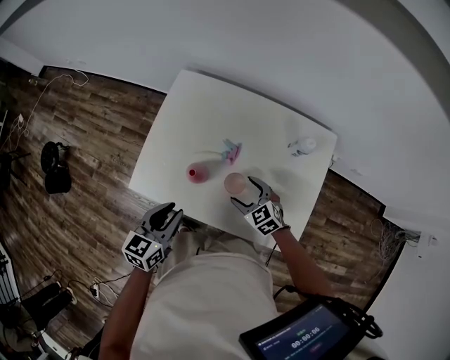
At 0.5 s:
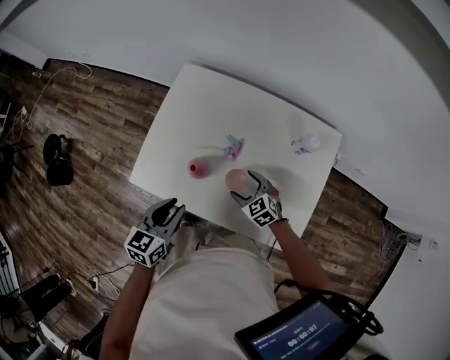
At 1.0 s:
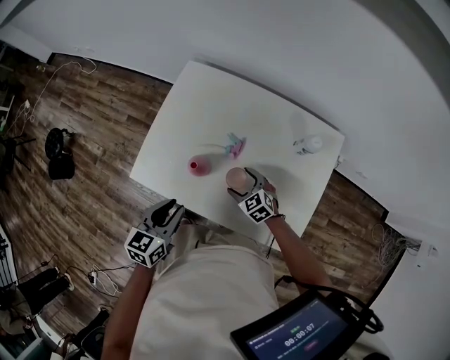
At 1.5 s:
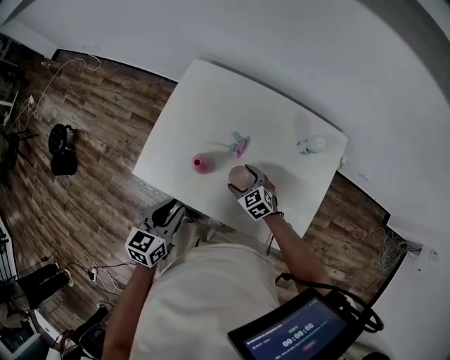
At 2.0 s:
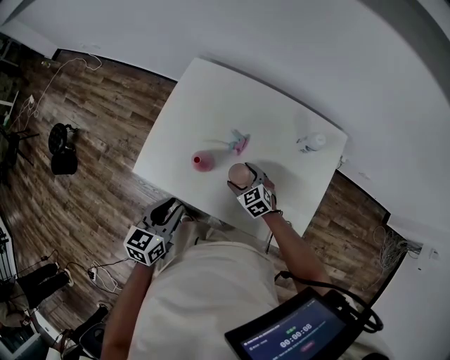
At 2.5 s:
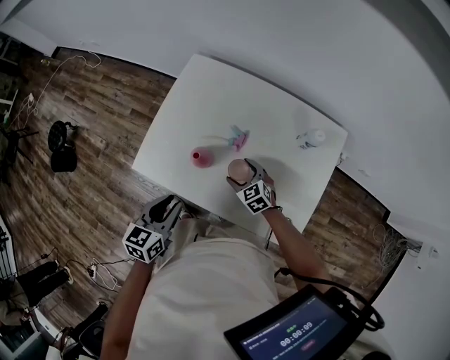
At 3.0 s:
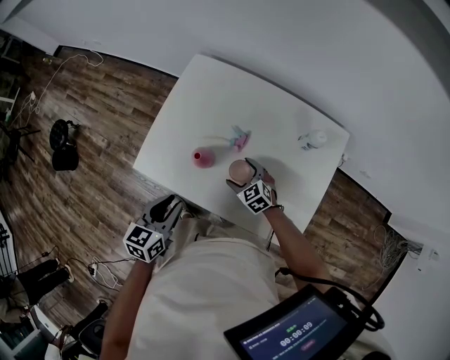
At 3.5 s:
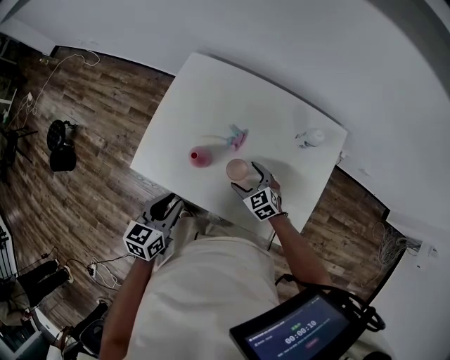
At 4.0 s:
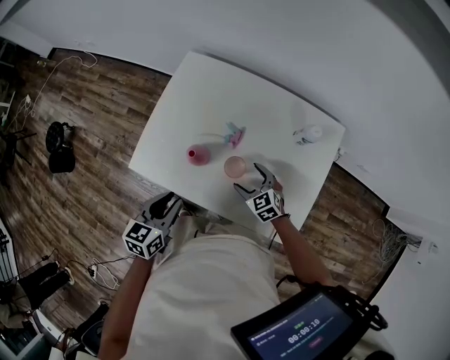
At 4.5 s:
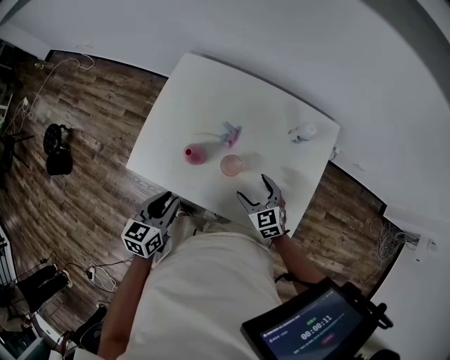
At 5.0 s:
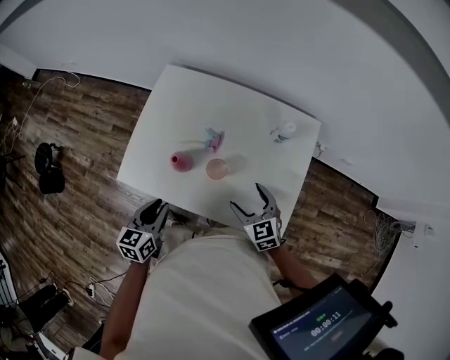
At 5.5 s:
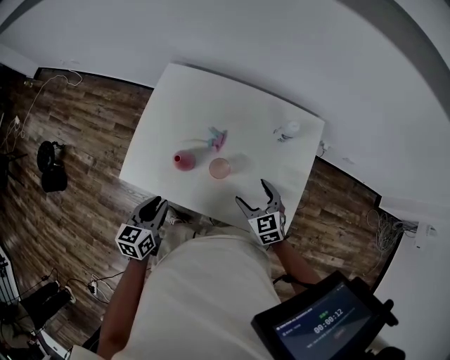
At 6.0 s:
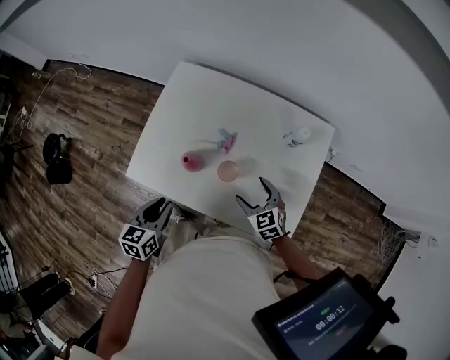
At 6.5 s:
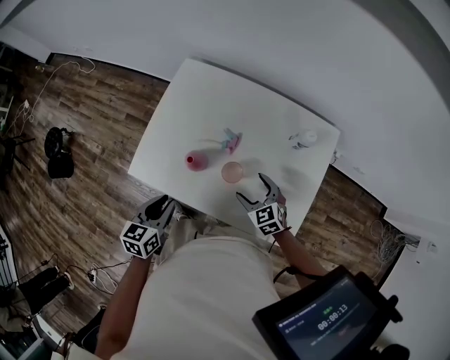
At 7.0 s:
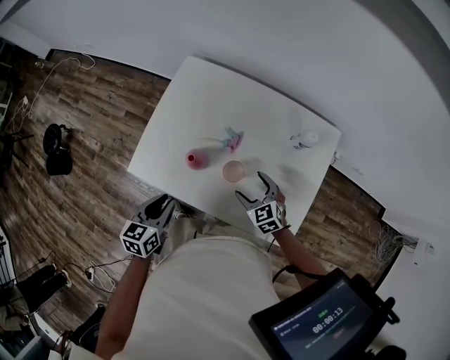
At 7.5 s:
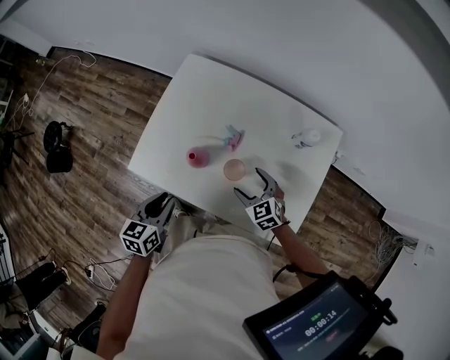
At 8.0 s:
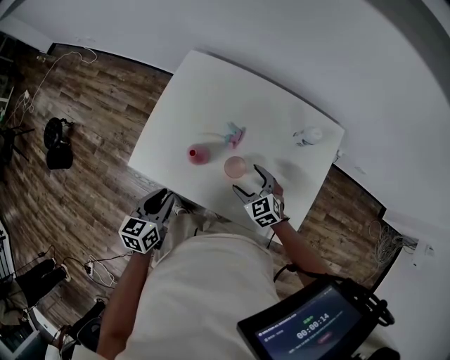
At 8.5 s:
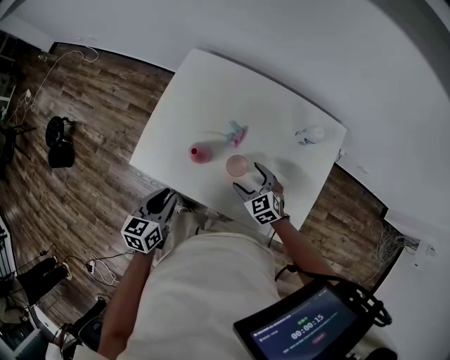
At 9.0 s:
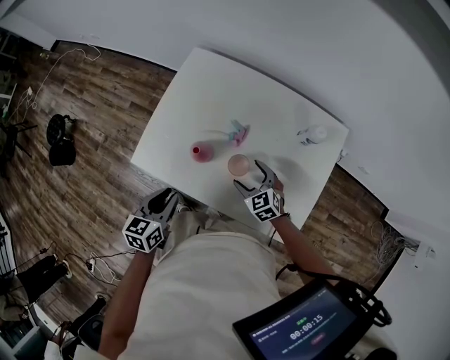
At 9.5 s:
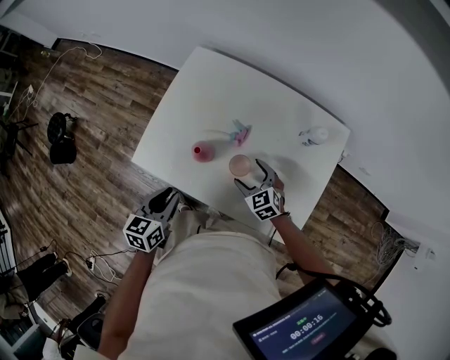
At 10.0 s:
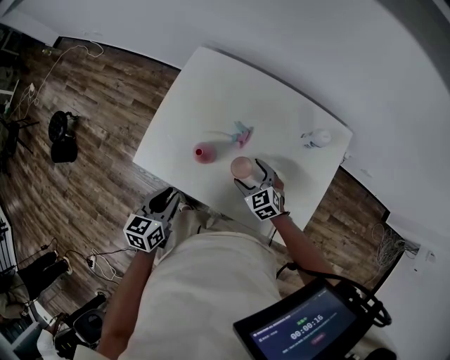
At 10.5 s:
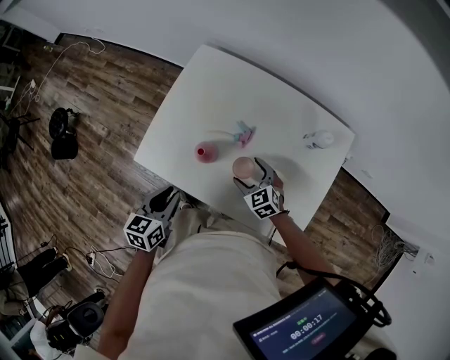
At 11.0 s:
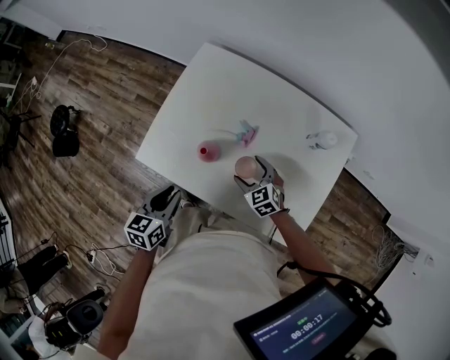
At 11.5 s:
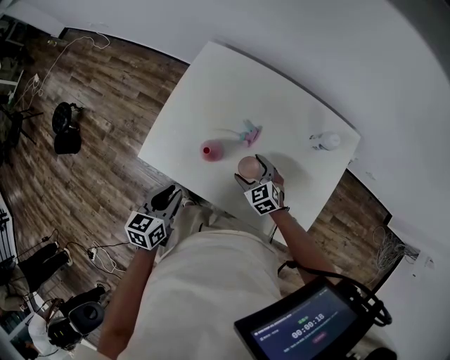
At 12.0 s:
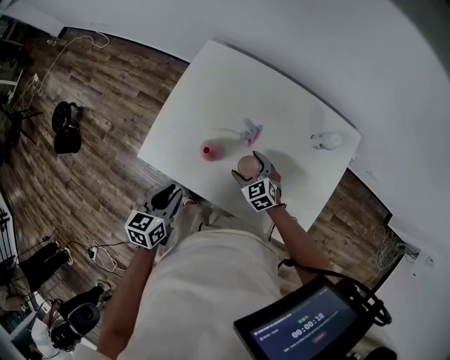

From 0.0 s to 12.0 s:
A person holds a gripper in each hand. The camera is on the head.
From 0.0 s to 2.0 s: The right gripper goes roughly 5 cm downward.
From 2.0 s to 4.0 s: The right gripper changes place by some 5 cm.
From 4.0 s to 6.0 s: The right gripper heads upward, covering some 5 cm.
From 6.0 s to 8.0 s: The right gripper ends up approximately 5 cm from where it was.
From 8.0 s to 10.0 s: The grippers stay close to where they were, moving slightly.
From 10.0 s to 12.0 s: There are only small adjustments of the grippers.

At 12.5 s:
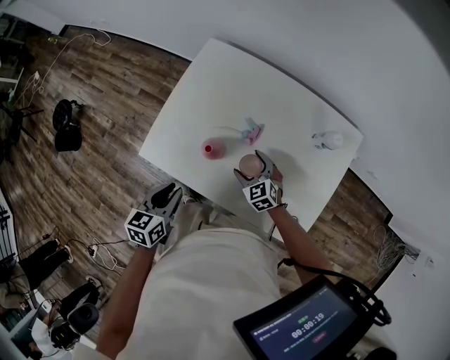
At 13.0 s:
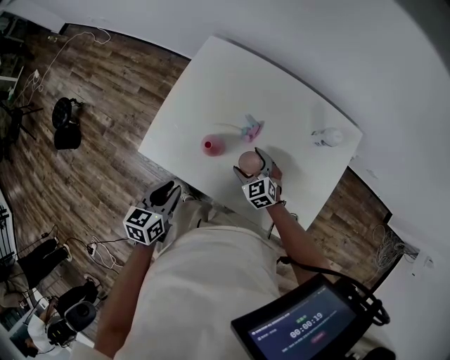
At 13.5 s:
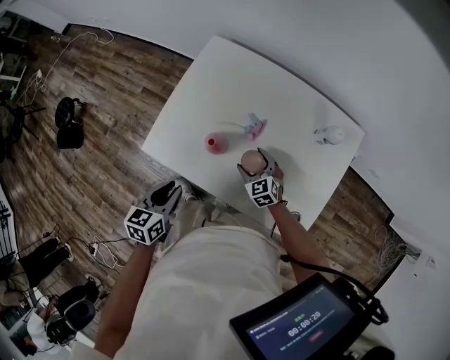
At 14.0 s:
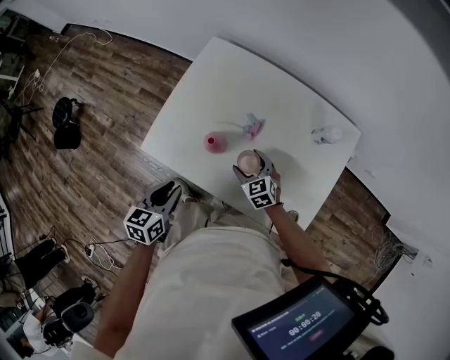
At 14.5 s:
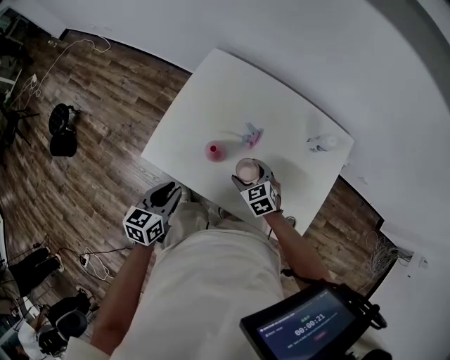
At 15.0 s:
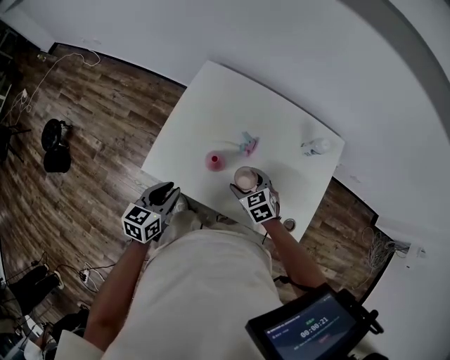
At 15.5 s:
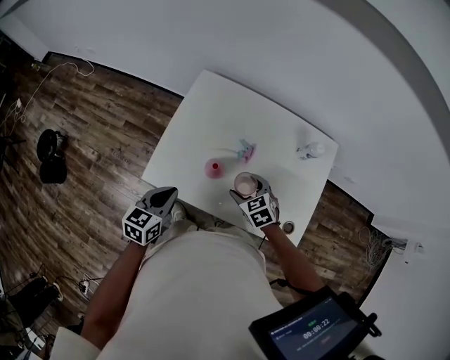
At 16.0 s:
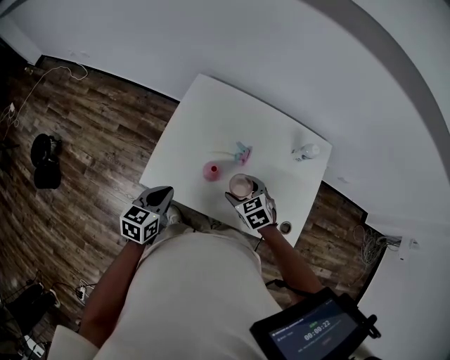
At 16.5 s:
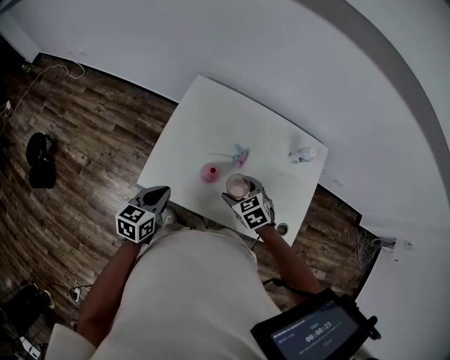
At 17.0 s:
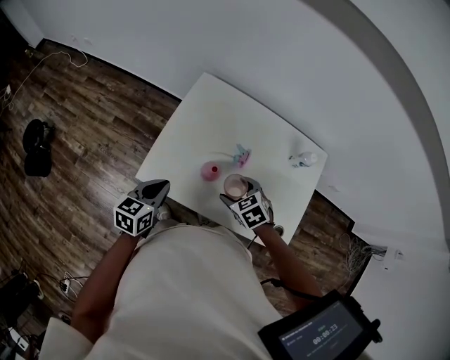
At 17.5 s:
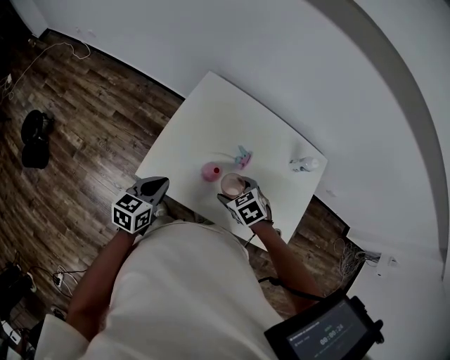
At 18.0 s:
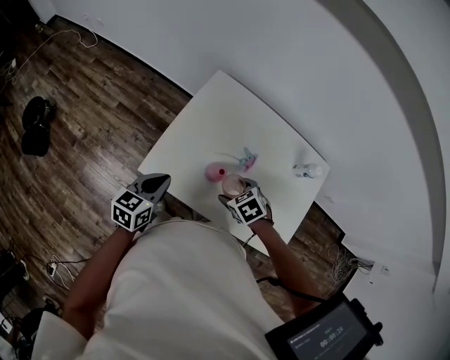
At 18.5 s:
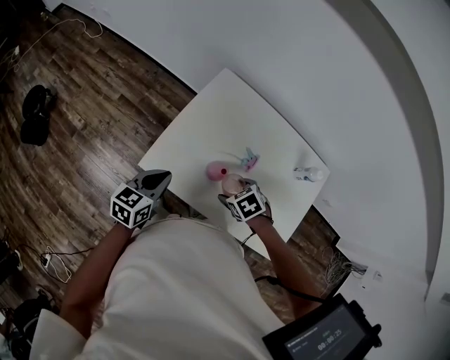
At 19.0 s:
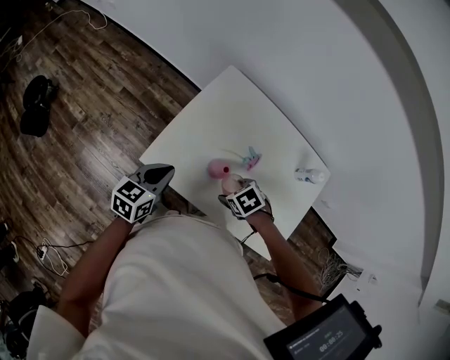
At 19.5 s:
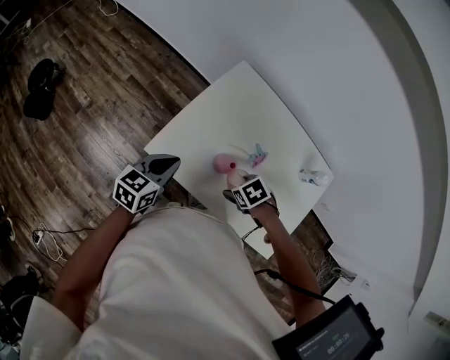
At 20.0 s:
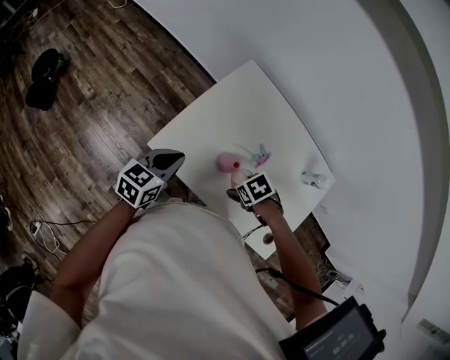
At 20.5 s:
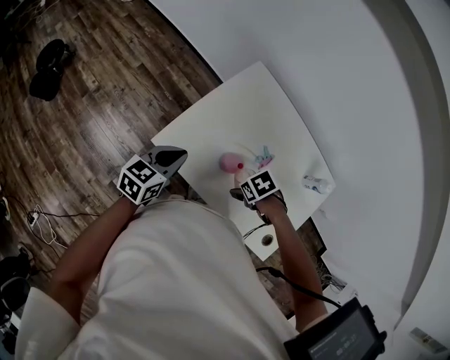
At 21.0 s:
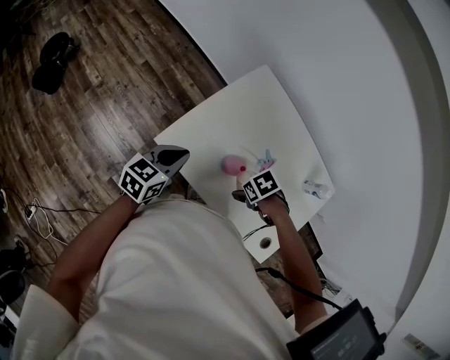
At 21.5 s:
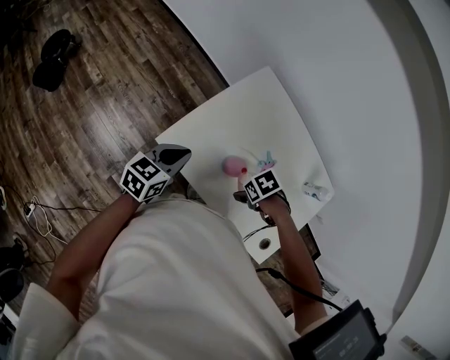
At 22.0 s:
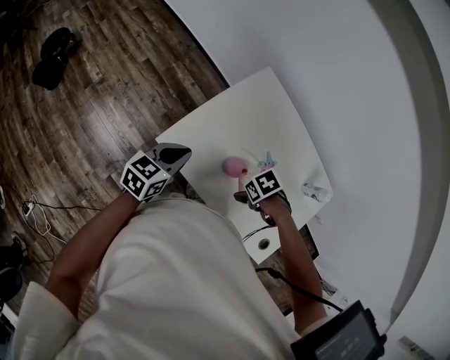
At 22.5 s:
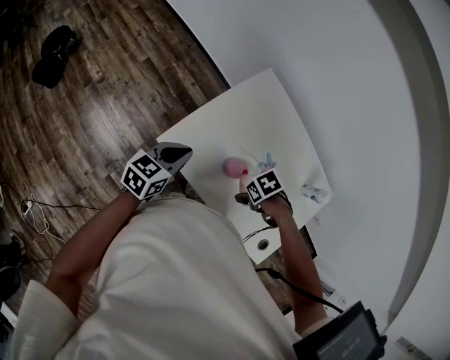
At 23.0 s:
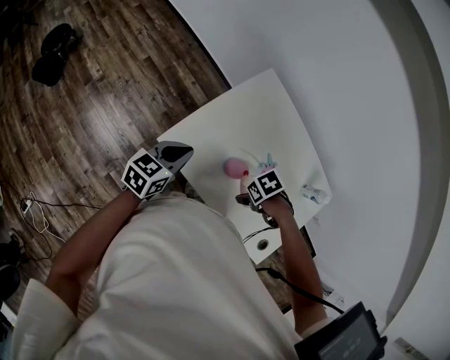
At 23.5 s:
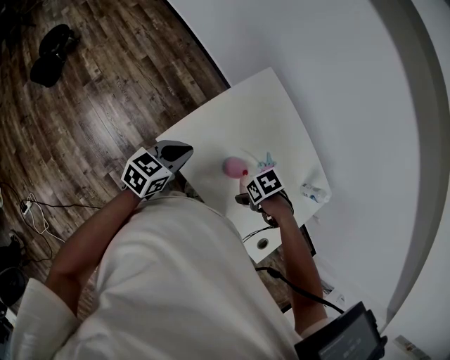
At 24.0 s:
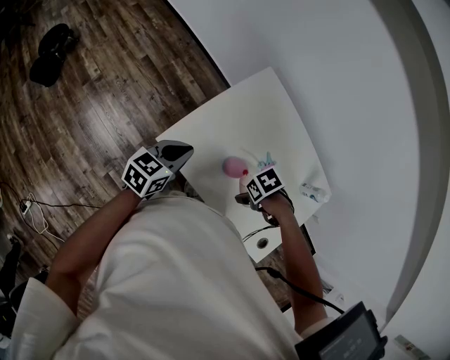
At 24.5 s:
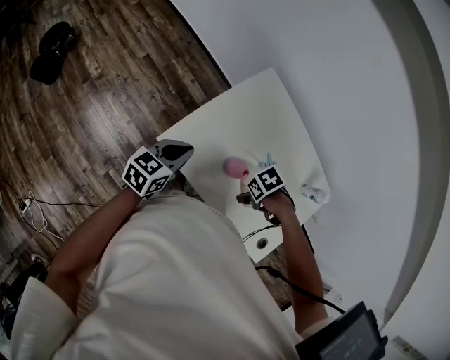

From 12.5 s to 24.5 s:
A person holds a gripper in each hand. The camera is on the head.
From 12.5 s to 14.5 s: The right gripper changes place by approximately 5 cm.
From 14.5 s to 16.5 s: The left gripper is displaced forward and to the left by about 10 cm, and closes, while the right gripper travels upward by about 10 cm.
From 16.5 s to 18.5 s: The right gripper moves roughly 5 cm, and rotates approximately 20 degrees.
From 18.5 s to 20.5 s: The right gripper changes its angle by some 20 degrees.
From 20.5 s to 24.5 s: The grippers stay close to where they were, moving slightly.

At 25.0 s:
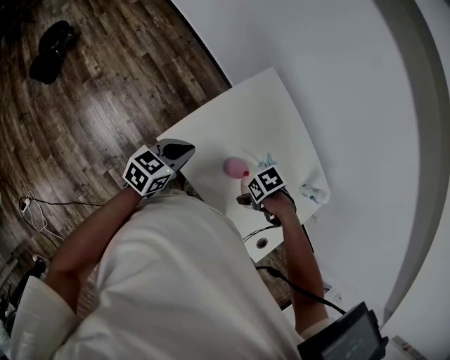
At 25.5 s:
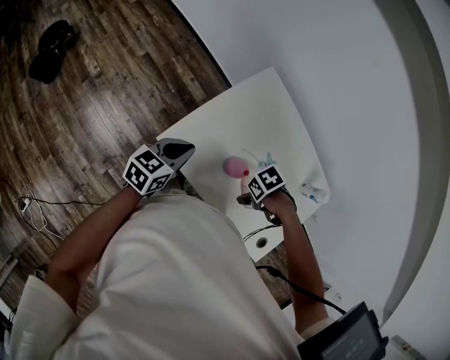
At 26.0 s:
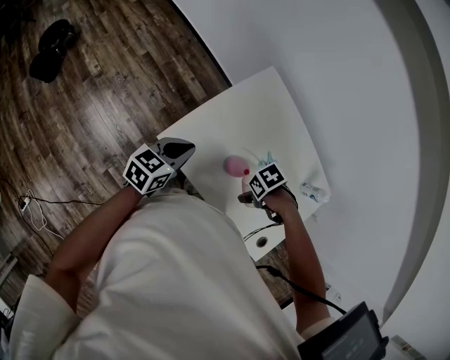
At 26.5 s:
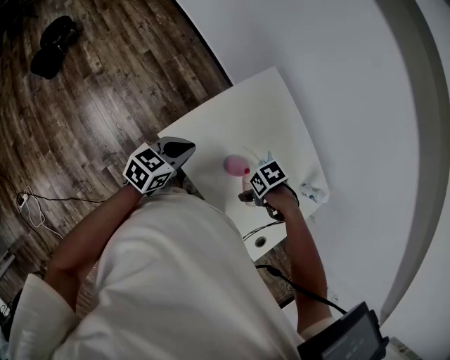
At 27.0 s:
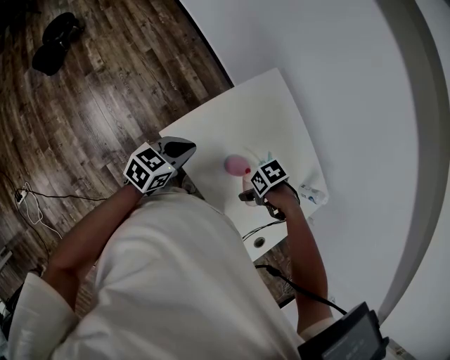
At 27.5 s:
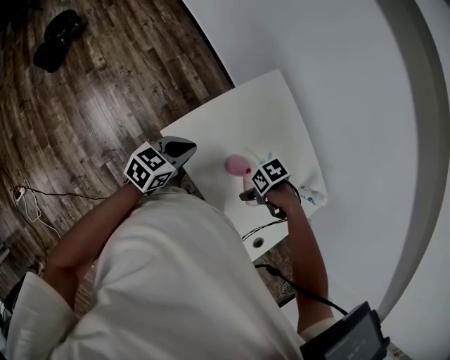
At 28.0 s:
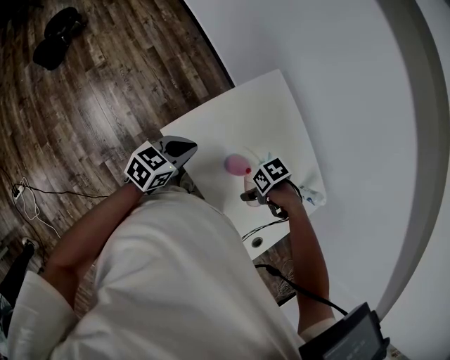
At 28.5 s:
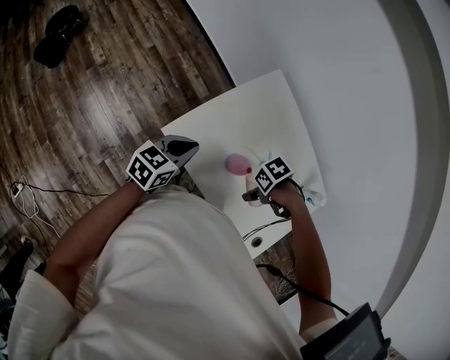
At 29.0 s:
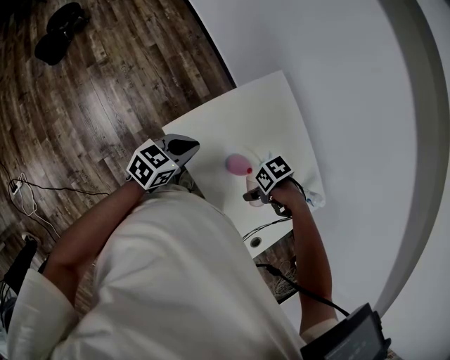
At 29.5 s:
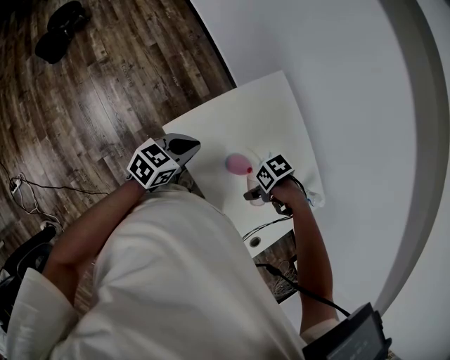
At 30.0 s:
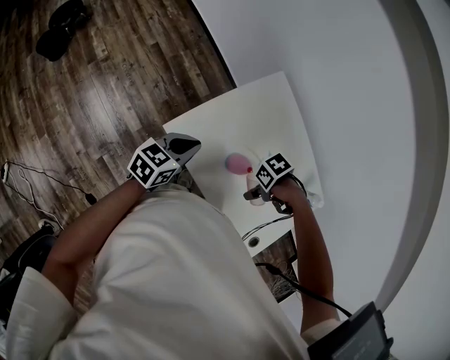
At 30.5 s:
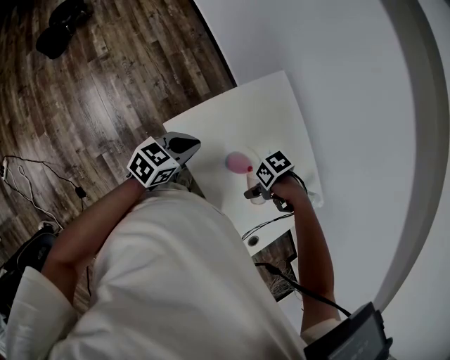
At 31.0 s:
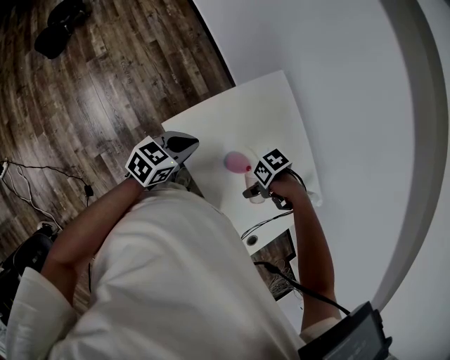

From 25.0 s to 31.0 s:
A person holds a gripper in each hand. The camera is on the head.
From 25.0 s to 27.0 s: The two grippers keep their place.
From 27.0 s to 31.0 s: The grippers stay close to where they were, moving slightly.
